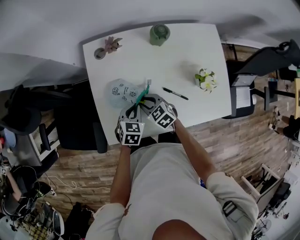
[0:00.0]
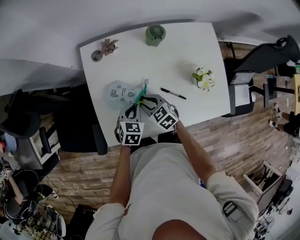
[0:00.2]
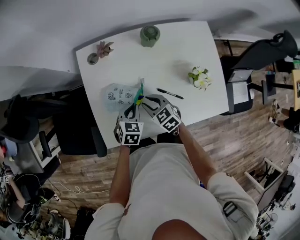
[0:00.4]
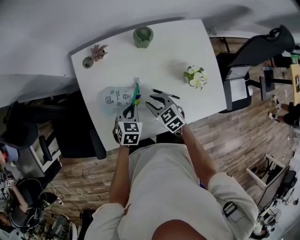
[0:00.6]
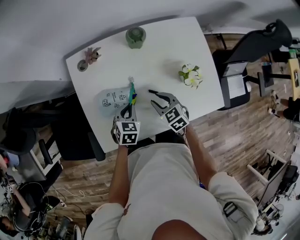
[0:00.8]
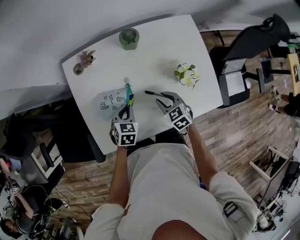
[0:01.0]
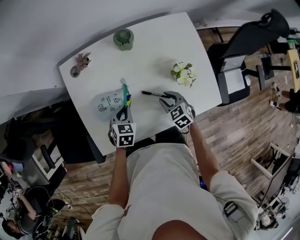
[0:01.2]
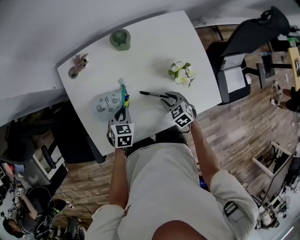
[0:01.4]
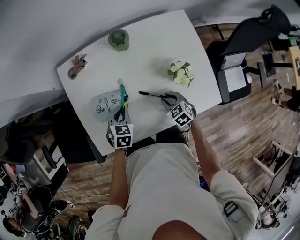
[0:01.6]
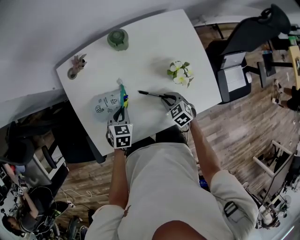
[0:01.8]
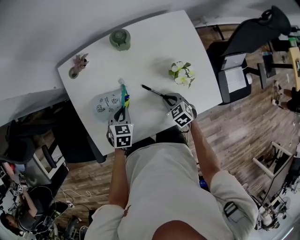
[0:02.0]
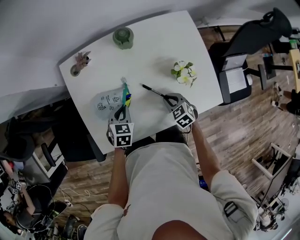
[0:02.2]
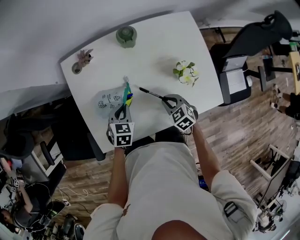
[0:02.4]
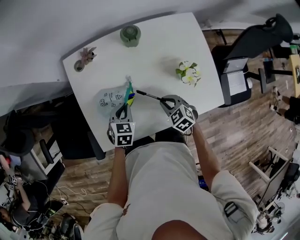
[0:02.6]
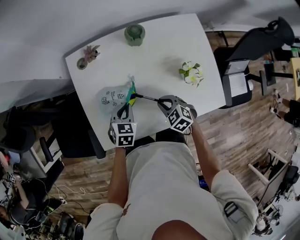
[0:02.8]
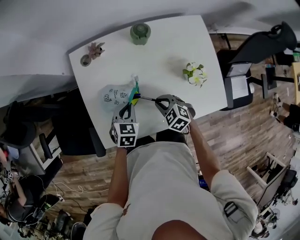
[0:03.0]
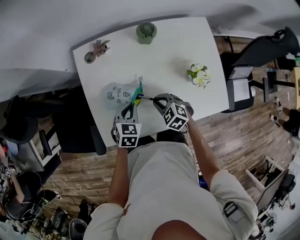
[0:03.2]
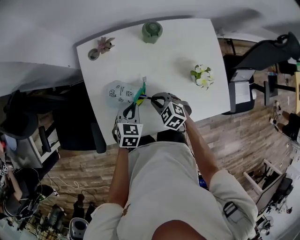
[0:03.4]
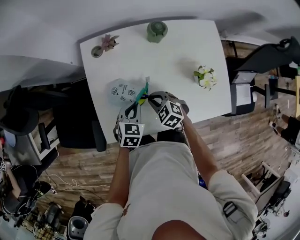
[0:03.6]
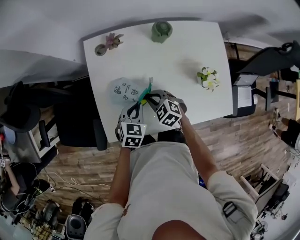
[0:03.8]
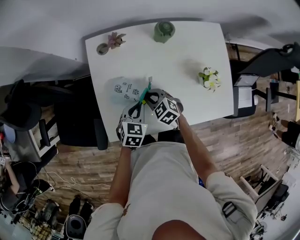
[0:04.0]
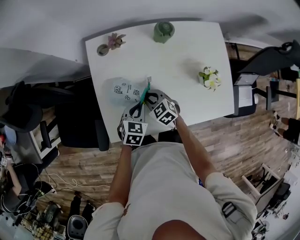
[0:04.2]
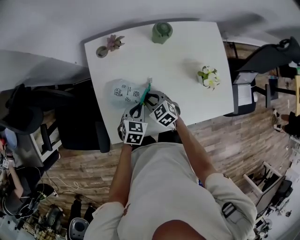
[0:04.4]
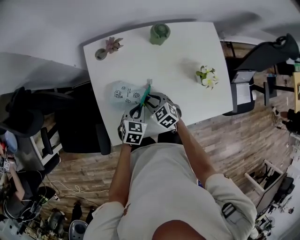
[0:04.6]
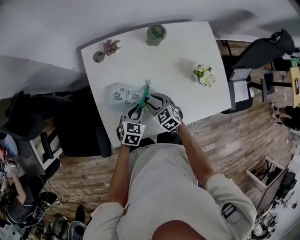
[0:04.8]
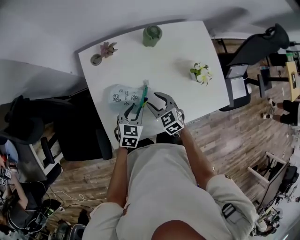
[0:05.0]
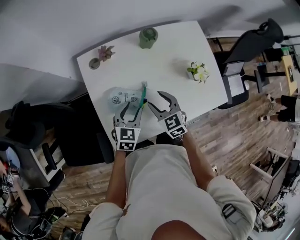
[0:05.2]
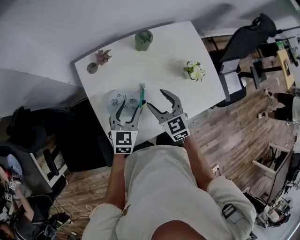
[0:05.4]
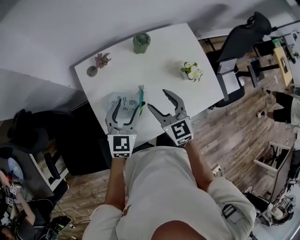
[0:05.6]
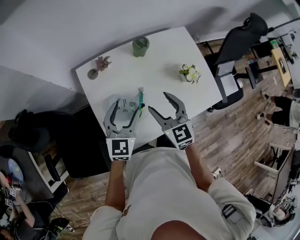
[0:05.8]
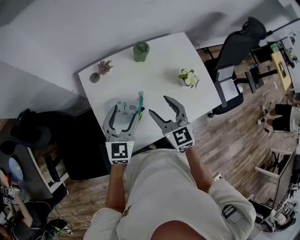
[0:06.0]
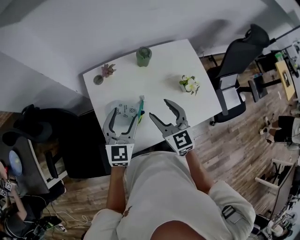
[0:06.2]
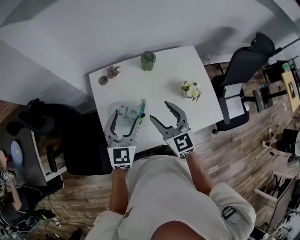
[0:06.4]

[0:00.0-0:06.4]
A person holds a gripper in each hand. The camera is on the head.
0:00.0 to 0:01.6: The right gripper moves to the right, roughly 25 cm, and swivels approximately 20 degrees; the left gripper shifts some 5 cm to the right.
0:01.6 to 0:03.2: The right gripper is displaced to the left by about 15 cm, and swivels about 20 degrees.
0:03.2 to 0:04.8: The right gripper heads to the left, covering roughly 5 cm, and opens.
0:04.8 to 0:06.4: The grippers both shift upward by roughly 25 cm. The left gripper points its fingers roughly 30 degrees further upward, and opens its fingers. The right gripper points its fingers approximately 30 degrees further upward, and opens its fingers.

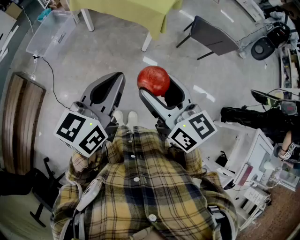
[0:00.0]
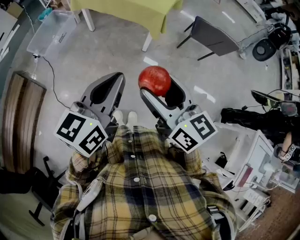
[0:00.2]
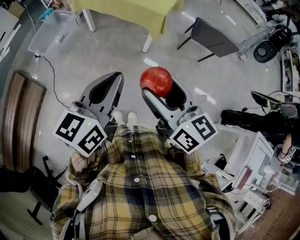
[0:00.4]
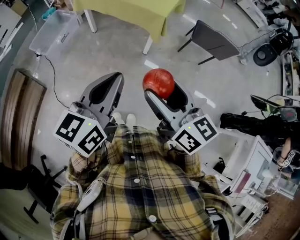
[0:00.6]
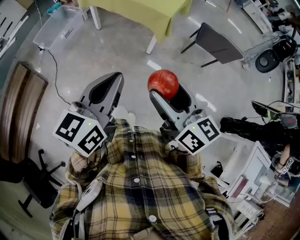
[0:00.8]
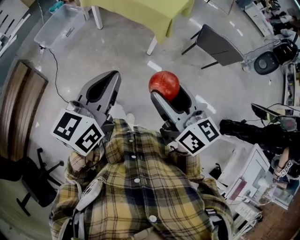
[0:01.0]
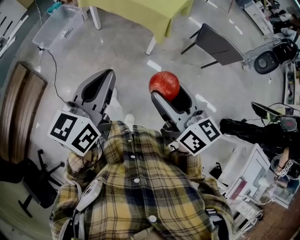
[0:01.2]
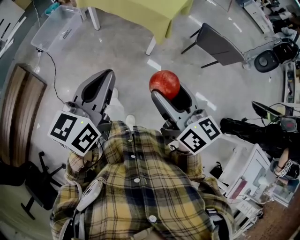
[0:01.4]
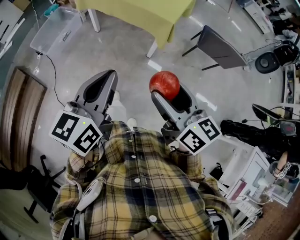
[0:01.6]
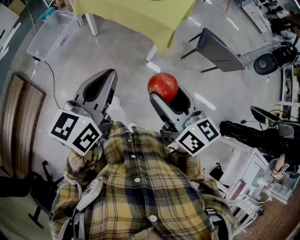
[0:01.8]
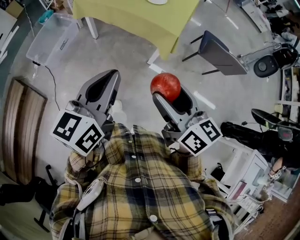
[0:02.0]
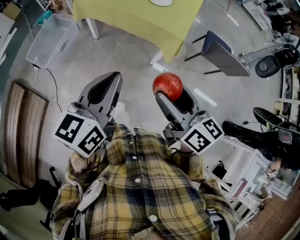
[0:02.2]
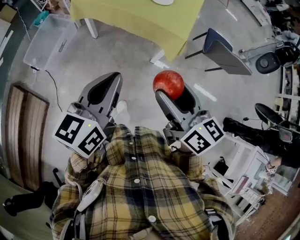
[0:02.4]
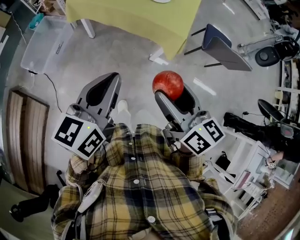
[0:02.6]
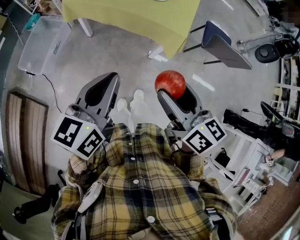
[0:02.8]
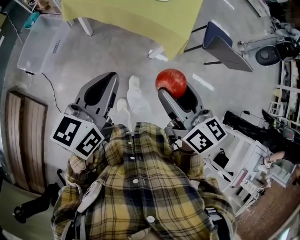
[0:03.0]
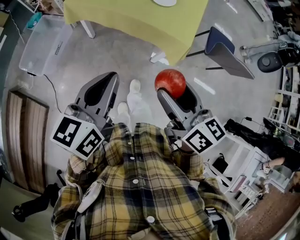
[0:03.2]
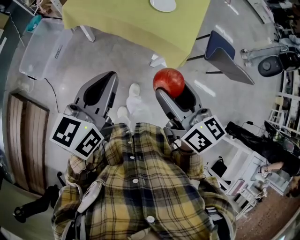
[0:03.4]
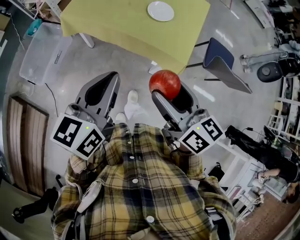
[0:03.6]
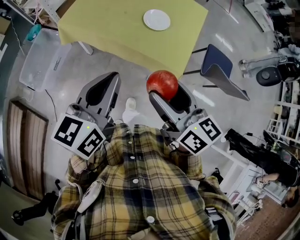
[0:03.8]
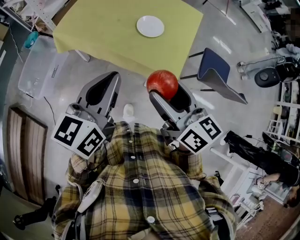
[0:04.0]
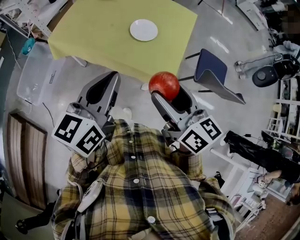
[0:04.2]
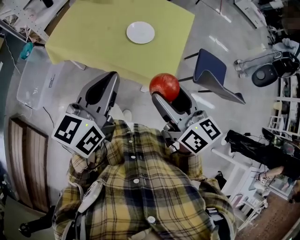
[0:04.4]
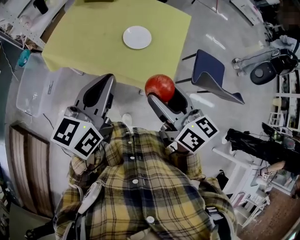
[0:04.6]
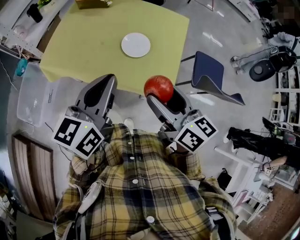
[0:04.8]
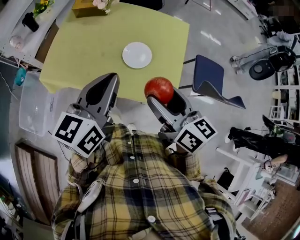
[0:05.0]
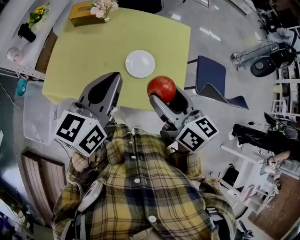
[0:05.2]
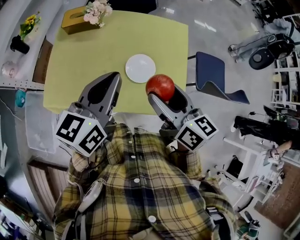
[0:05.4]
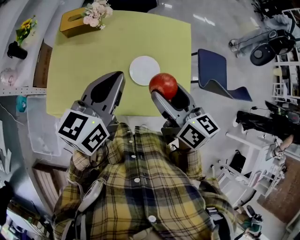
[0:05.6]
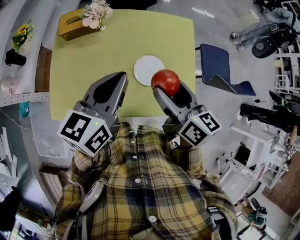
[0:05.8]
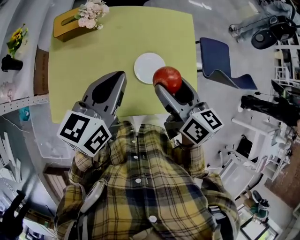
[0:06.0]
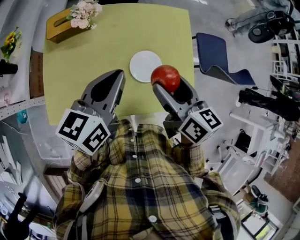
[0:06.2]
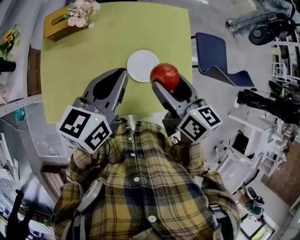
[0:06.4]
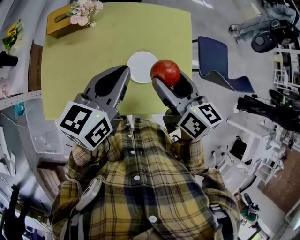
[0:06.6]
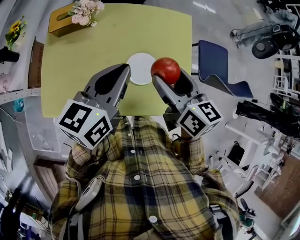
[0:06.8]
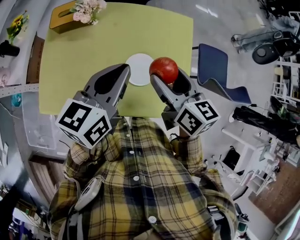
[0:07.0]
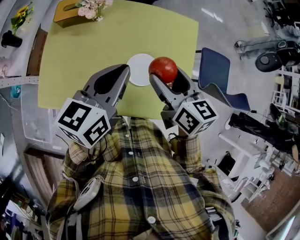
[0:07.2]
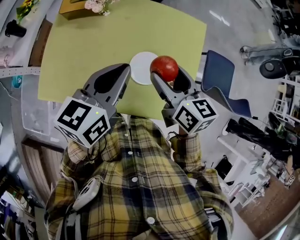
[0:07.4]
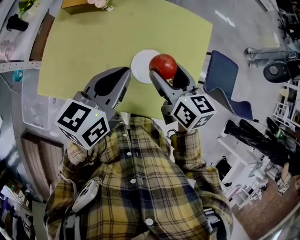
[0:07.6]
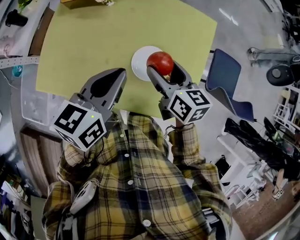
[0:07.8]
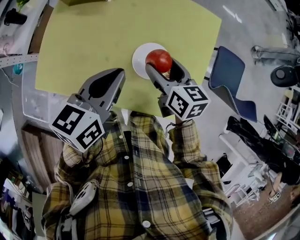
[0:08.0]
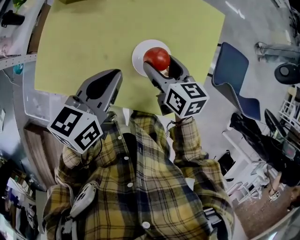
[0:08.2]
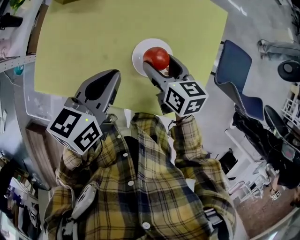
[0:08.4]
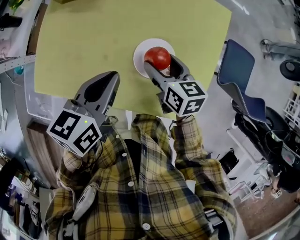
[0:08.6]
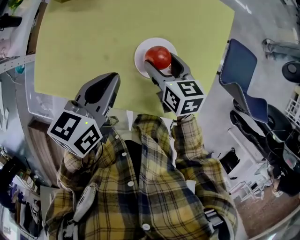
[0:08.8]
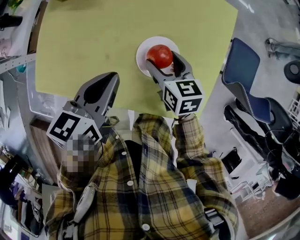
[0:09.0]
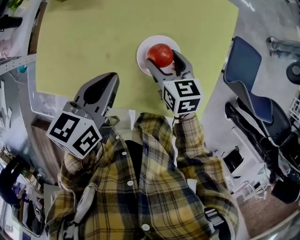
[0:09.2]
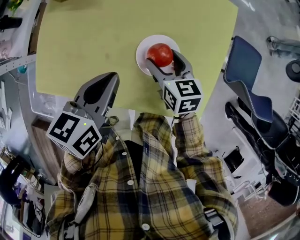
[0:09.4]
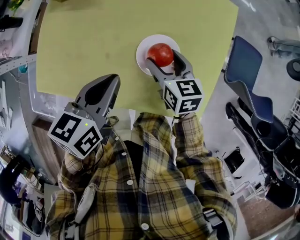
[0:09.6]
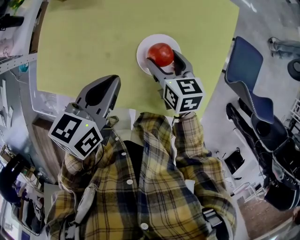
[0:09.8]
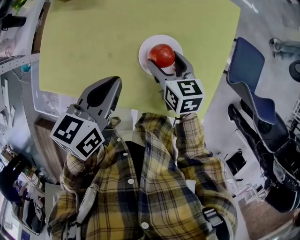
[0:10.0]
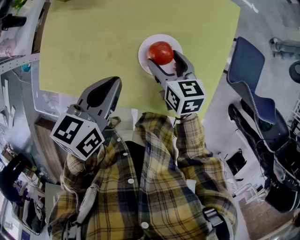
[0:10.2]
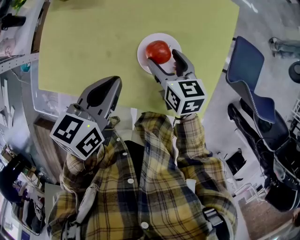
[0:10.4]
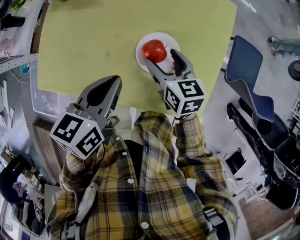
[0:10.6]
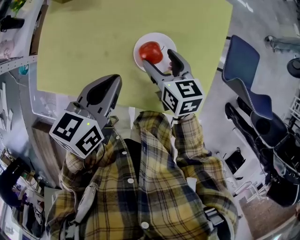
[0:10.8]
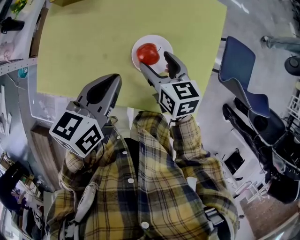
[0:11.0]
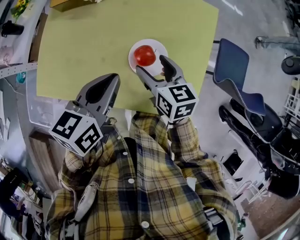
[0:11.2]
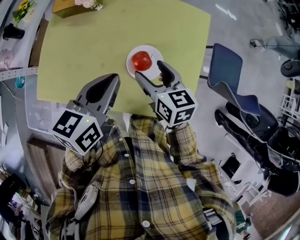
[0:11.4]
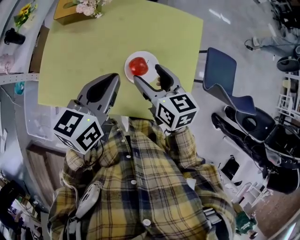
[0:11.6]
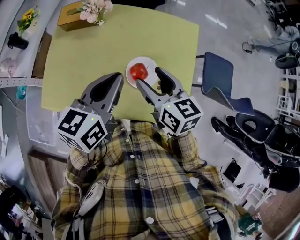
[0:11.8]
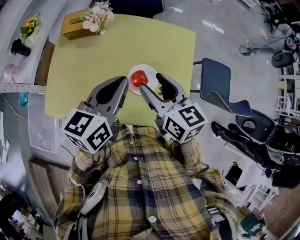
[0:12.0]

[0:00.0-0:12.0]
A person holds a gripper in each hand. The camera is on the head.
0:00.0 to 0:01.6: Both grippers travel together forward, some 5 cm.
0:01.6 to 0:03.0: The grippers both shift forward and to the left by about 25 cm.
0:03.0 to 0:04.4: Both grippers travel together forward, roughly 25 cm.
0:04.4 to 0:06.0: The right gripper heads forward and to the left, covering about 30 cm, and turns by some 30 degrees. The left gripper goes about 30 cm forward, and changes its angle by approximately 30 degrees.
0:06.0 to 0:07.6: The right gripper is displaced downward and forward by some 10 cm. The left gripper moves about 5 cm.
0:07.6 to 0:09.0: The left gripper travels downward by about 10 cm. Meanwhile the right gripper travels downward by some 15 cm.
0:09.0 to 0:10.4: The grippers move only a little.
0:10.4 to 0:12.0: The right gripper moves upward, about 20 cm. Meanwhile the left gripper shifts approximately 15 cm upward, and changes its angle by approximately 20 degrees.

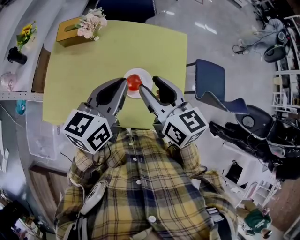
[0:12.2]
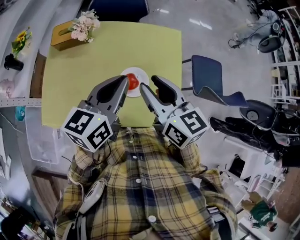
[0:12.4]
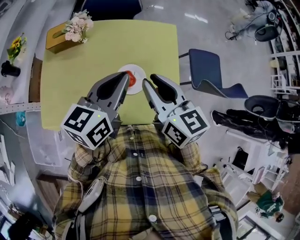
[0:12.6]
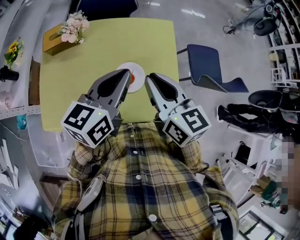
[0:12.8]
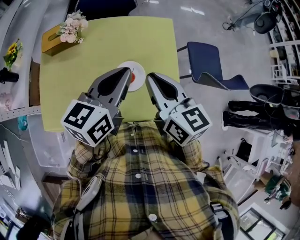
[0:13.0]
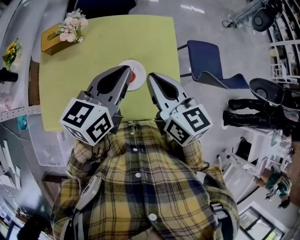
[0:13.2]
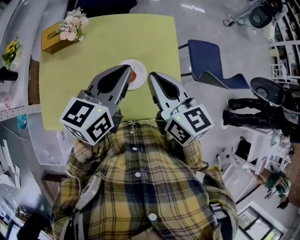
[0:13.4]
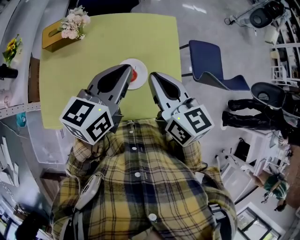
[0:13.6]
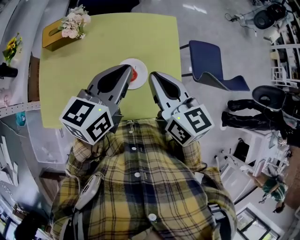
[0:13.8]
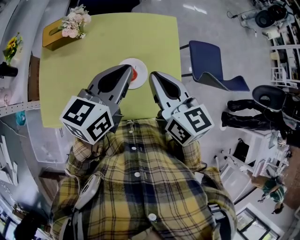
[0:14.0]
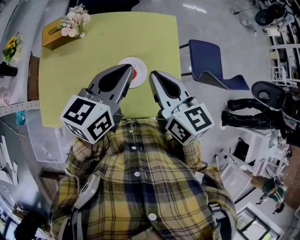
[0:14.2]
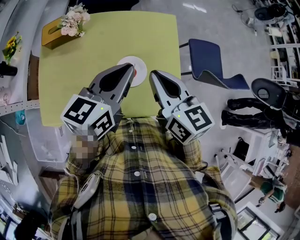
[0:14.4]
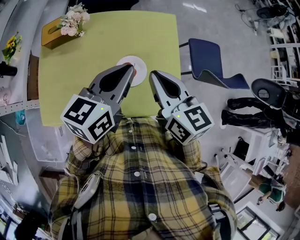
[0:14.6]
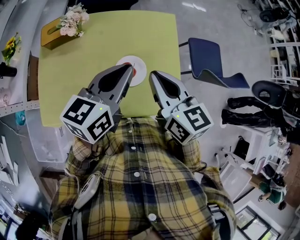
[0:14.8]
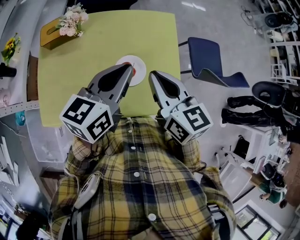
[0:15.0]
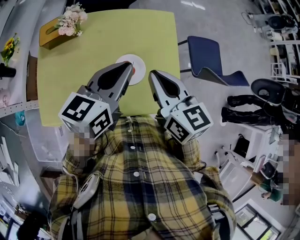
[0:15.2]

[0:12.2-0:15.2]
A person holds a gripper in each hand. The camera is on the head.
0:12.2 to 0:13.8: The right gripper closes.
0:13.8 to 0:15.2: The grippers stay close to where they were, moving slightly.

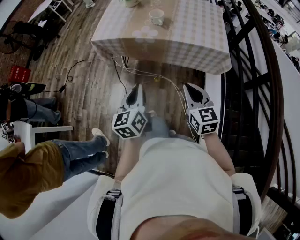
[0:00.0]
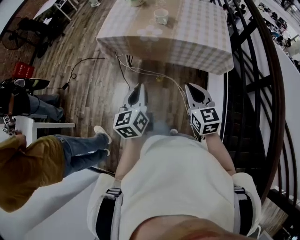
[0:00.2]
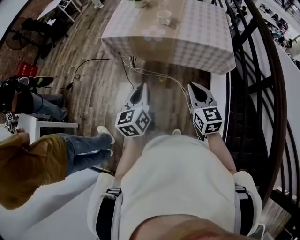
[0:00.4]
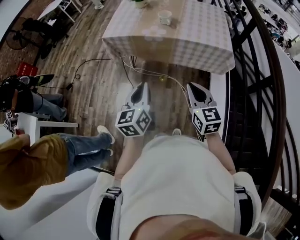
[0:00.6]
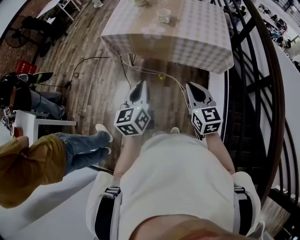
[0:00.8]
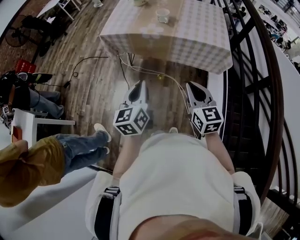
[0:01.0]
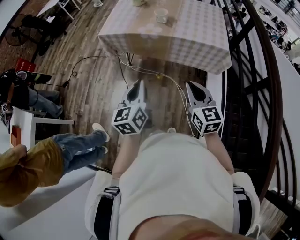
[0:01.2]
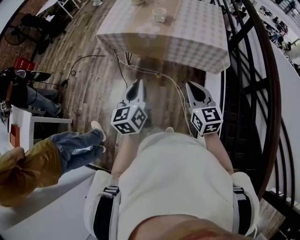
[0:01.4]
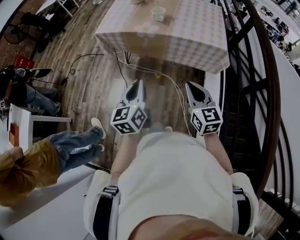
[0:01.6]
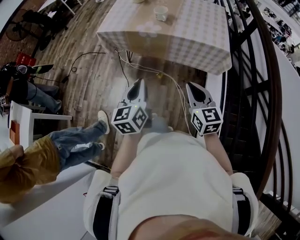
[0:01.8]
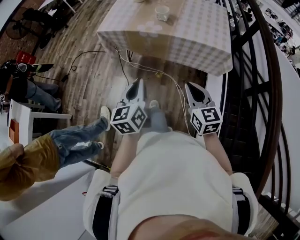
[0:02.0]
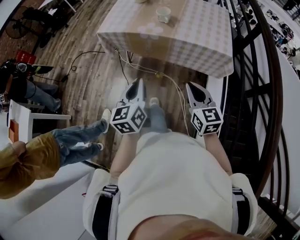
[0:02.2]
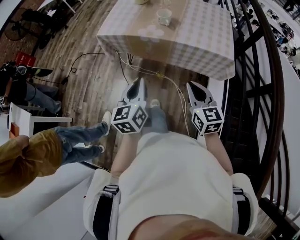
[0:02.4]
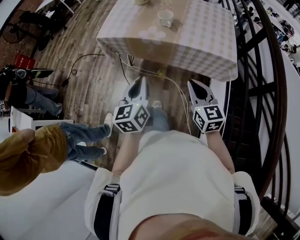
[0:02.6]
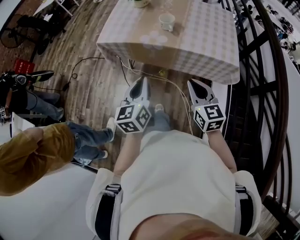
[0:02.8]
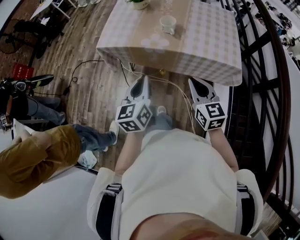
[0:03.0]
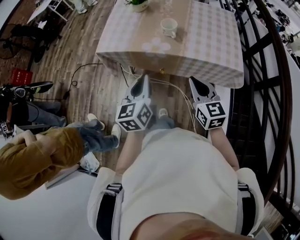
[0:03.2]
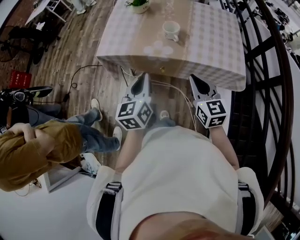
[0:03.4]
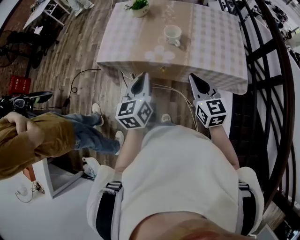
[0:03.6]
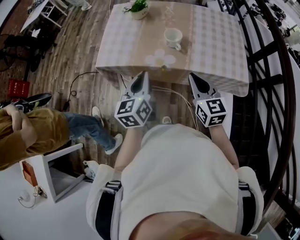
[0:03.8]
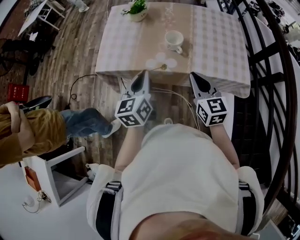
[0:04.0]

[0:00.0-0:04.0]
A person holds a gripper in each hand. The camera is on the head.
0:00.0 to 0:01.4: Both grippers move backward, about 5 cm.
0:01.4 to 0:02.6: The two grippers go roughly 10 cm forward.
0:02.6 to 0:04.0: The grippers both shift forward by about 25 cm.
